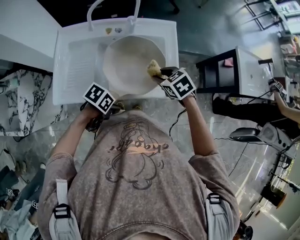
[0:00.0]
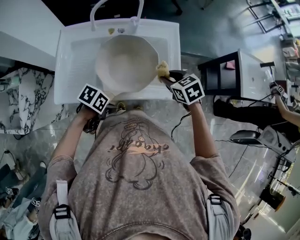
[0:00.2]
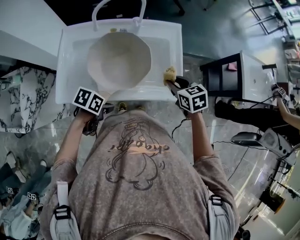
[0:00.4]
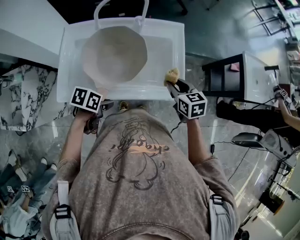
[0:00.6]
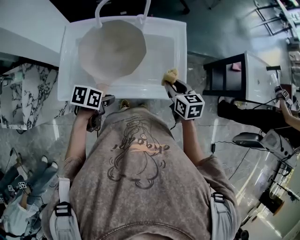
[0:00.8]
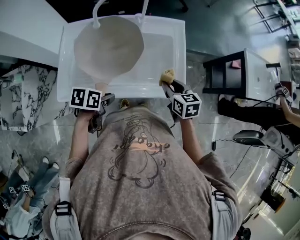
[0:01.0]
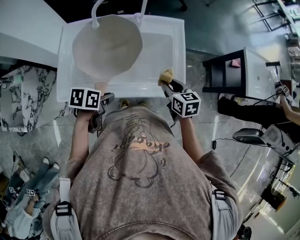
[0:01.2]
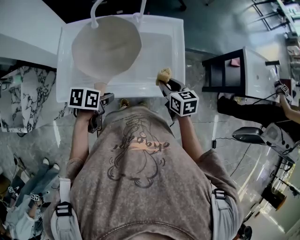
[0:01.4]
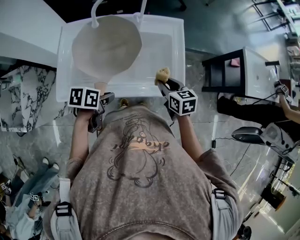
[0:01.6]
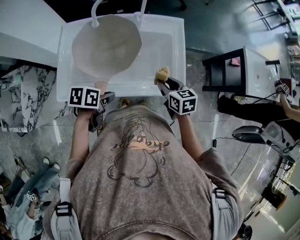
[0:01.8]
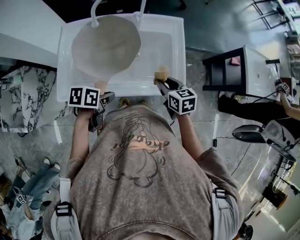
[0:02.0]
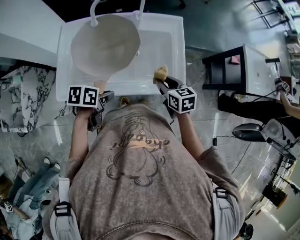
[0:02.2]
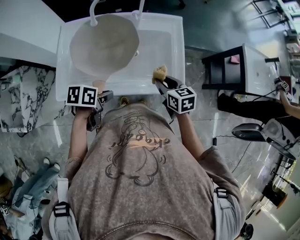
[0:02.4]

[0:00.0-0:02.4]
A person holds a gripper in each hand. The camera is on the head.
0:00.0 to 0:01.2: The right gripper changes its angle by approximately 40 degrees.

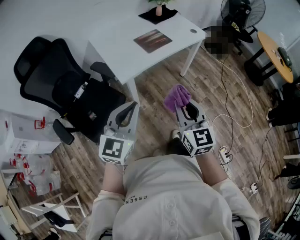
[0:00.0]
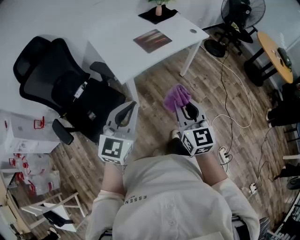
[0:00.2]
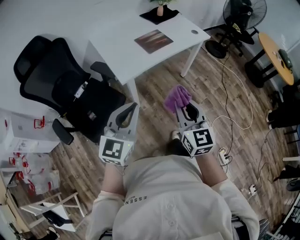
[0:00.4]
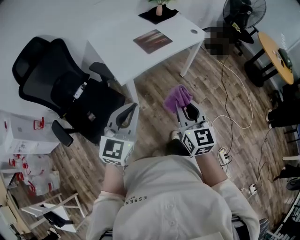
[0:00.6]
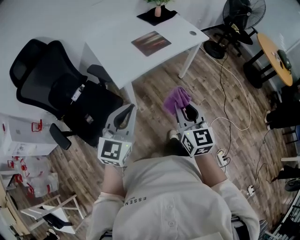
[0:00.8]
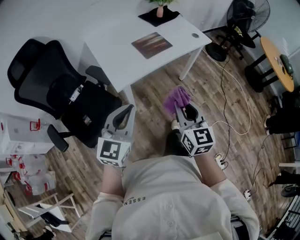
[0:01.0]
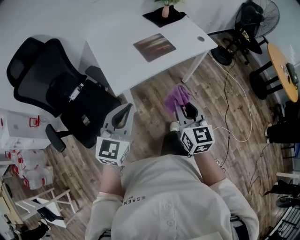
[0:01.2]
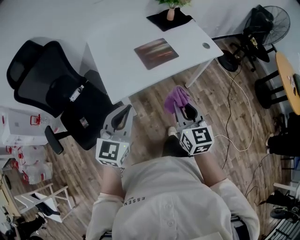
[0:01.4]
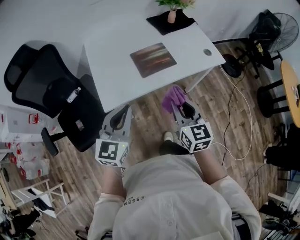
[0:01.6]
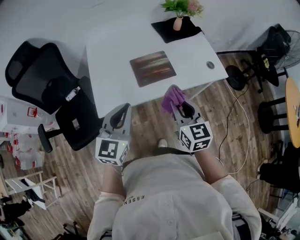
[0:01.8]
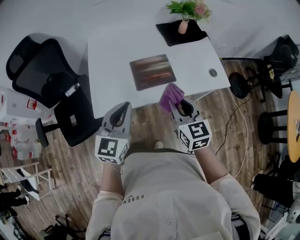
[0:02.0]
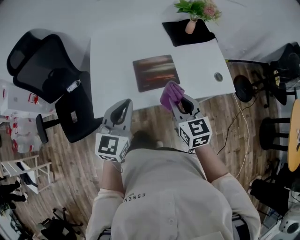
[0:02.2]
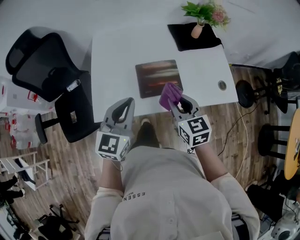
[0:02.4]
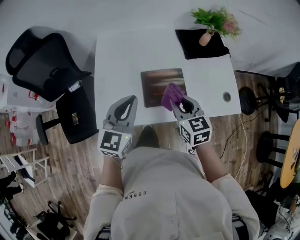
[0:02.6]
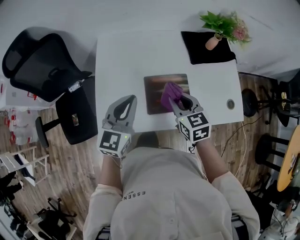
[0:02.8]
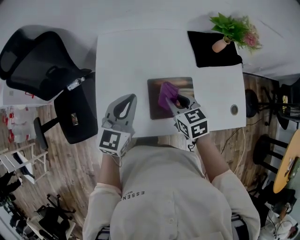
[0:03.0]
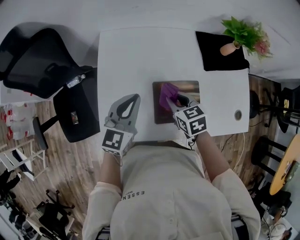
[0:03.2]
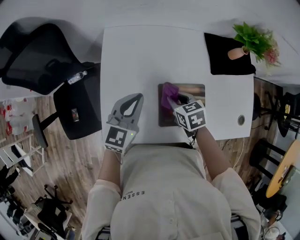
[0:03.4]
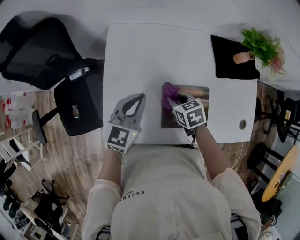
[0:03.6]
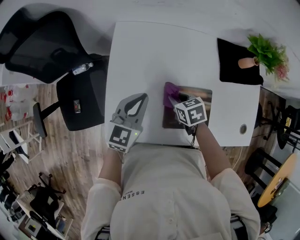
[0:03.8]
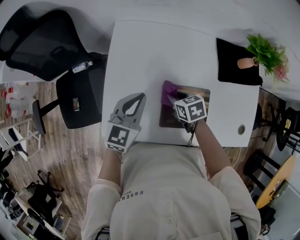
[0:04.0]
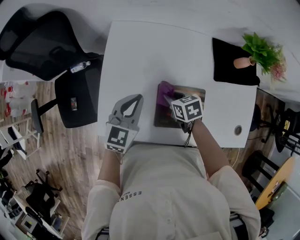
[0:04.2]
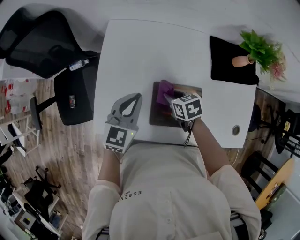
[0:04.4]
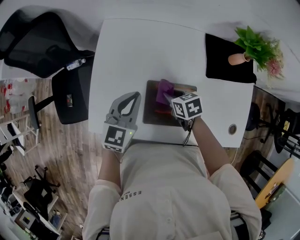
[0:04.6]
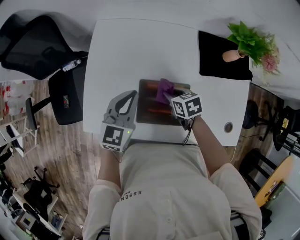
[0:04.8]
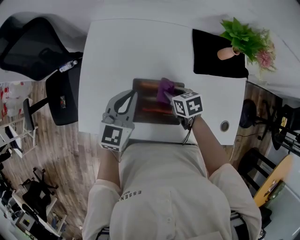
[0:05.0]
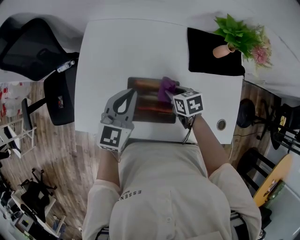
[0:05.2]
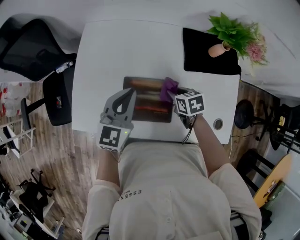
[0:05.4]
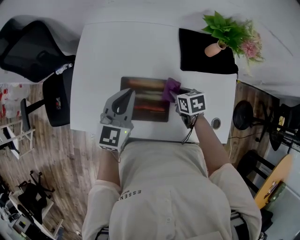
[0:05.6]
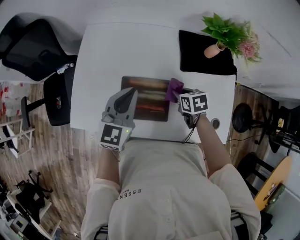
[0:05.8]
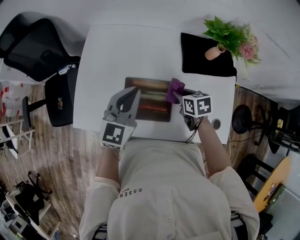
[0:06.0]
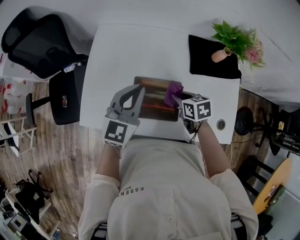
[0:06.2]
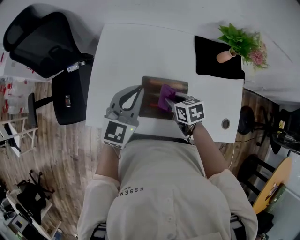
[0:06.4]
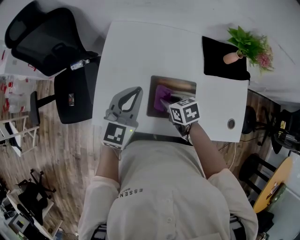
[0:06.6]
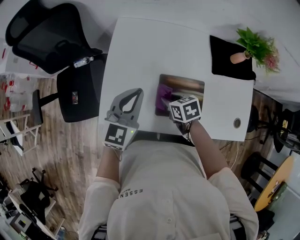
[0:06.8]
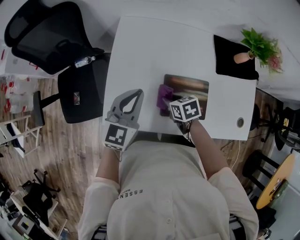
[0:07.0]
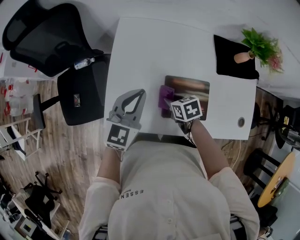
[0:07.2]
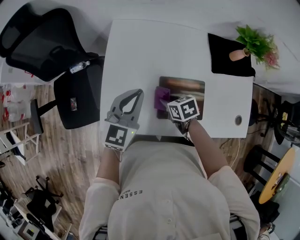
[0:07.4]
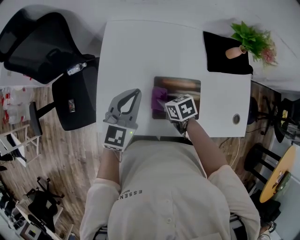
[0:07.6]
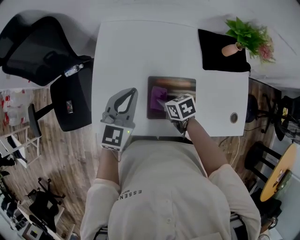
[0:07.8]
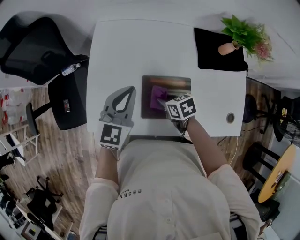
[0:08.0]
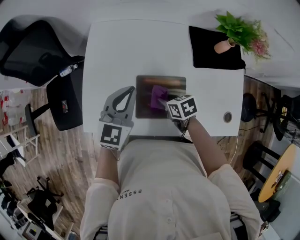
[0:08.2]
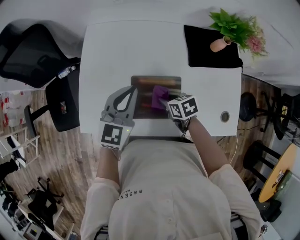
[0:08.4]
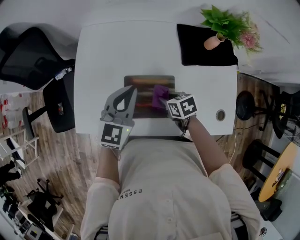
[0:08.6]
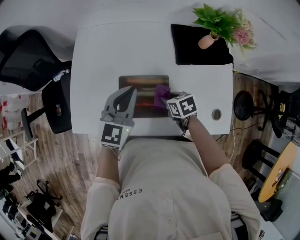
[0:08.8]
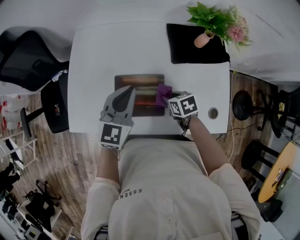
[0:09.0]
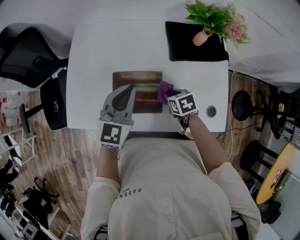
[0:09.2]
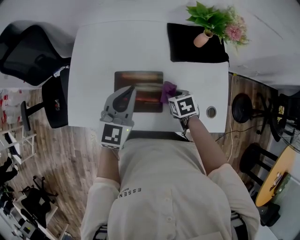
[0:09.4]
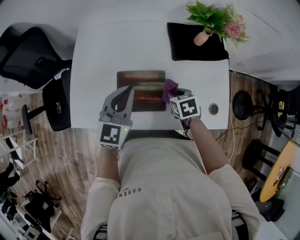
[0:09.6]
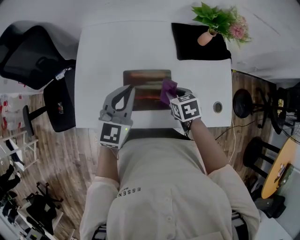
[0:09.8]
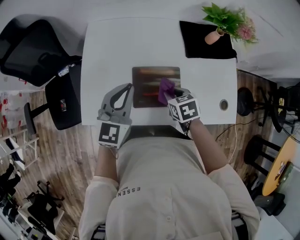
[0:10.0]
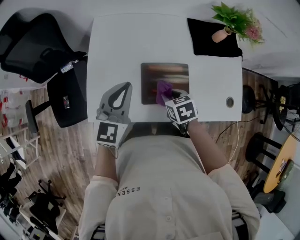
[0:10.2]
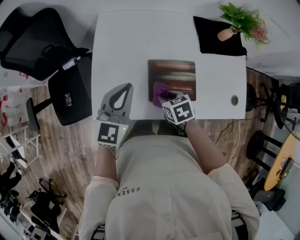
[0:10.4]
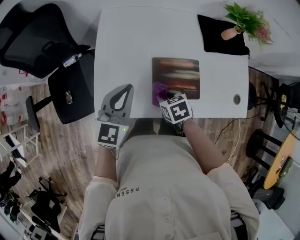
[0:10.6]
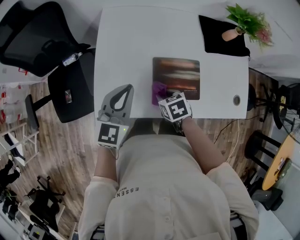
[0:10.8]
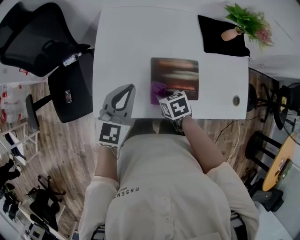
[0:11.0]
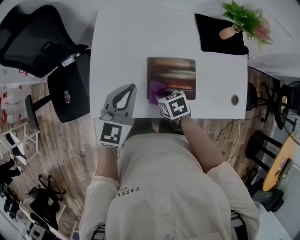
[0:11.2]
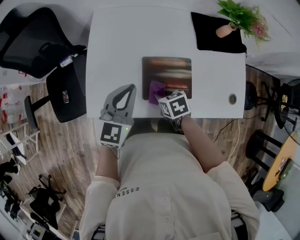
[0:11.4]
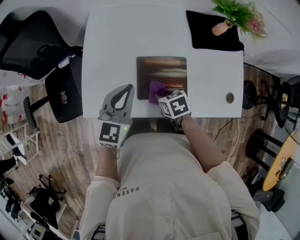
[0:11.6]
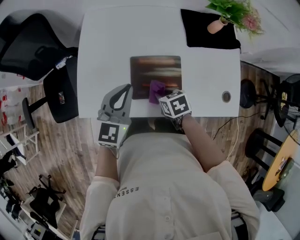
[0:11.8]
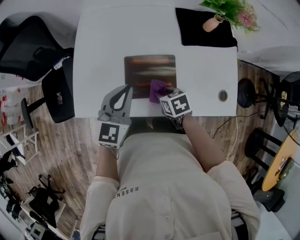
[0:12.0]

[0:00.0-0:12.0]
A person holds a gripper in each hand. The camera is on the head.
0:00.0 to 0:01.6: The grippers both shift forward by approximately 25 cm.
0:01.6 to 0:03.0: The two grippers go some 30 cm forward. The right gripper changes its angle by about 40 degrees.
0:03.0 to 0:04.4: The left gripper goes roughly 5 cm downward. Meanwhile the right gripper moves downward and forward, approximately 15 cm, and rotates roughly 20 degrees.
0:04.4 to 0:06.0: The left gripper goes about 15 cm to the right and upward. The right gripper heads to the right, covering approximately 15 cm.
0:06.0 to 0:07.6: The right gripper heads to the left, covering some 20 cm; the left gripper travels to the left by some 15 cm.
0:07.6 to 0:09.0: Both grippers travel together to the right, approximately 20 cm.
0:09.0 to 0:10.4: The grippers both shift to the left by about 20 cm.
0:10.4 to 0:12.0: The two grippers go about 10 cm to the right.

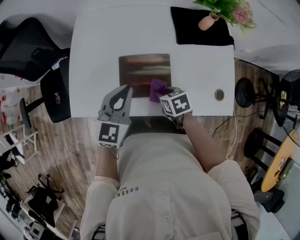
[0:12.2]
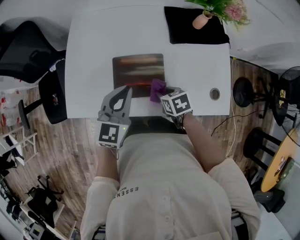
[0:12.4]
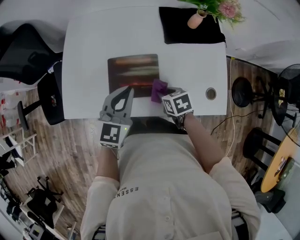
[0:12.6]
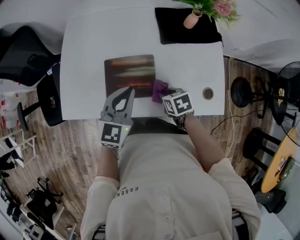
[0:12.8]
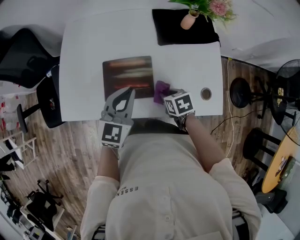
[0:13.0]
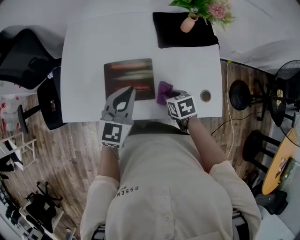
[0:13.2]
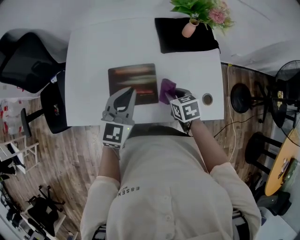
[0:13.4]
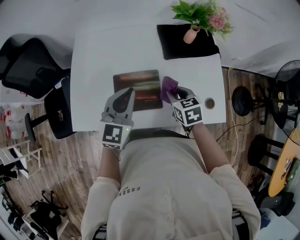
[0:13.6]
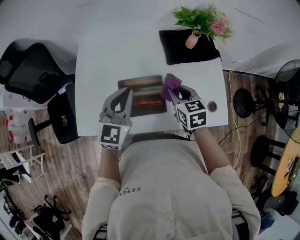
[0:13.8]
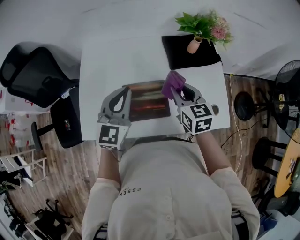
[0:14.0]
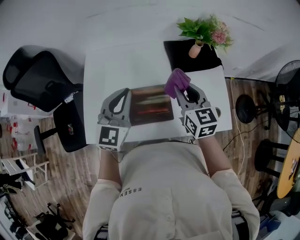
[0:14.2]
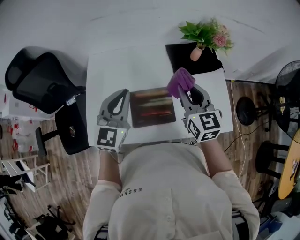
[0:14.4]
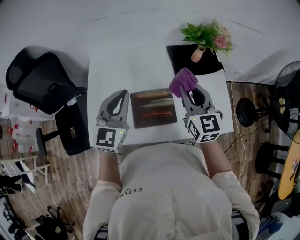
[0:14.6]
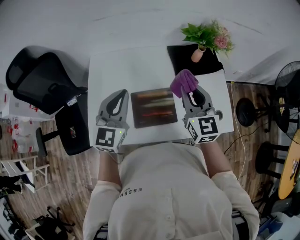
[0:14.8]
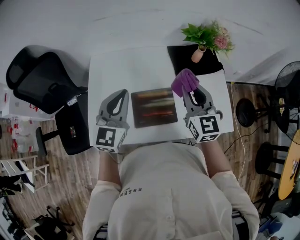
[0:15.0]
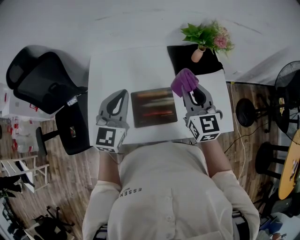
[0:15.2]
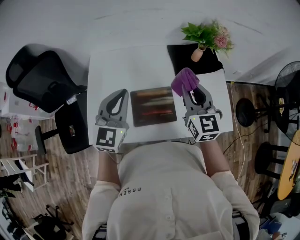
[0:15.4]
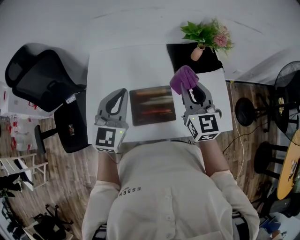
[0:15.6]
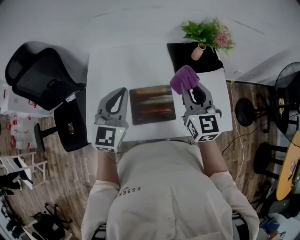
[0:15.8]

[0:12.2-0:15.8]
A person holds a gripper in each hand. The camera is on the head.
0:12.2 to 0:14.0: The left gripper travels upward and forward by about 10 cm, while the right gripper is displaced upward and forward by roughly 20 cm, and points its fingers about 30 degrees further upward.
0:14.0 to 0:15.8: The left gripper shifts by about 5 cm. Meanwhile the right gripper goes some 10 cm upward, and changes its angle by about 20 degrees.

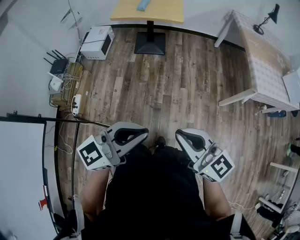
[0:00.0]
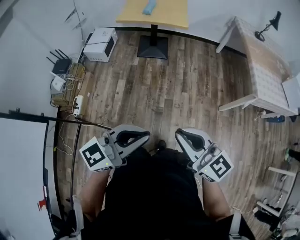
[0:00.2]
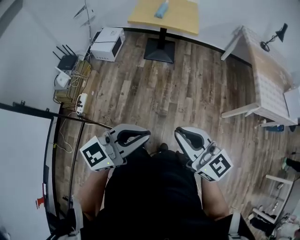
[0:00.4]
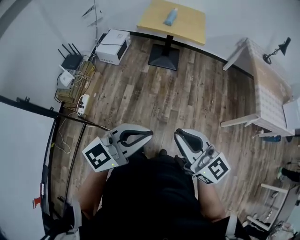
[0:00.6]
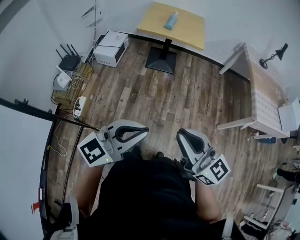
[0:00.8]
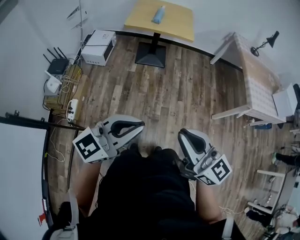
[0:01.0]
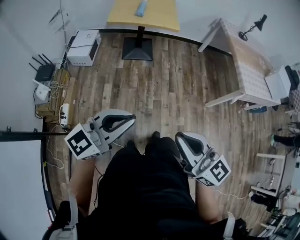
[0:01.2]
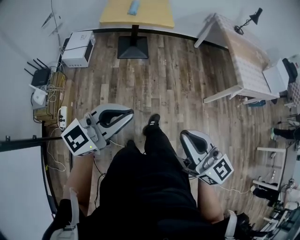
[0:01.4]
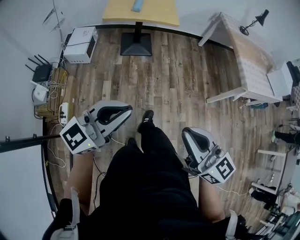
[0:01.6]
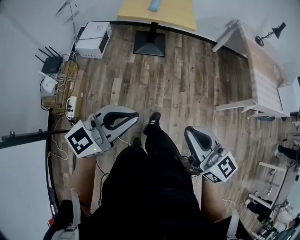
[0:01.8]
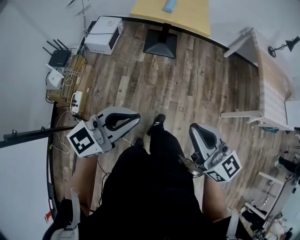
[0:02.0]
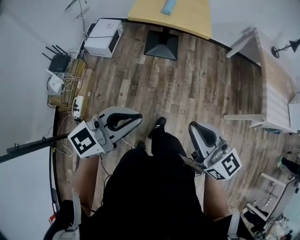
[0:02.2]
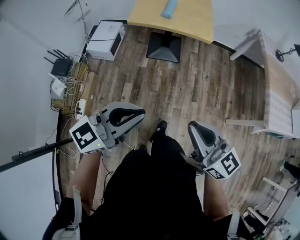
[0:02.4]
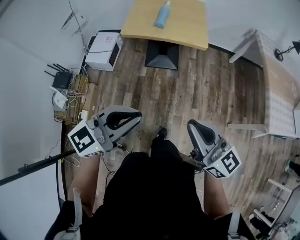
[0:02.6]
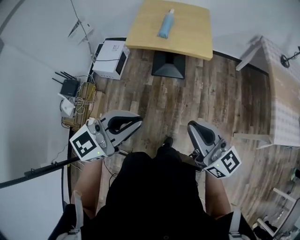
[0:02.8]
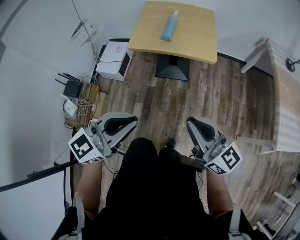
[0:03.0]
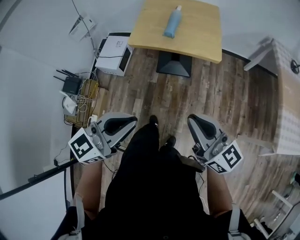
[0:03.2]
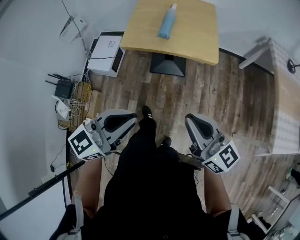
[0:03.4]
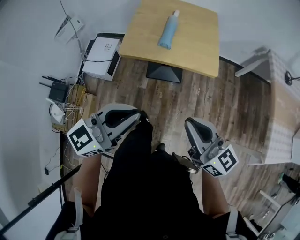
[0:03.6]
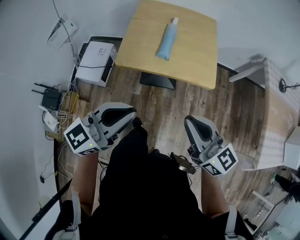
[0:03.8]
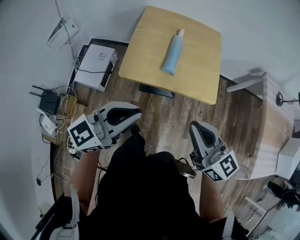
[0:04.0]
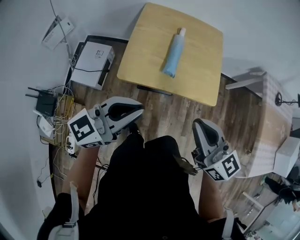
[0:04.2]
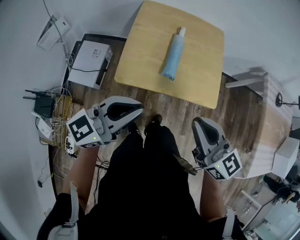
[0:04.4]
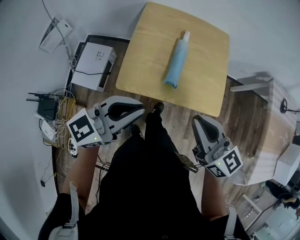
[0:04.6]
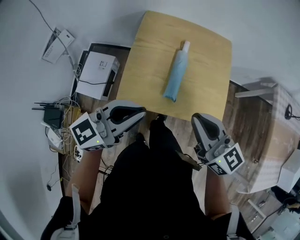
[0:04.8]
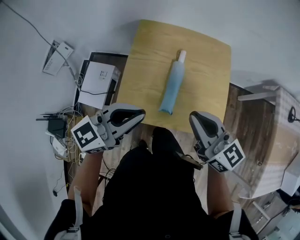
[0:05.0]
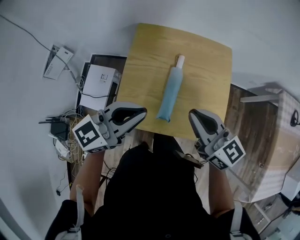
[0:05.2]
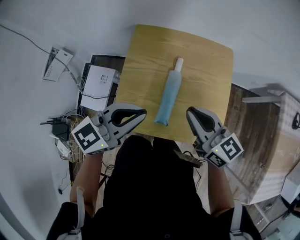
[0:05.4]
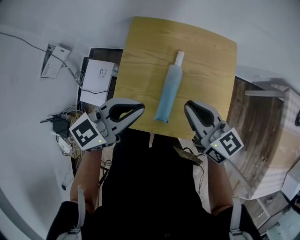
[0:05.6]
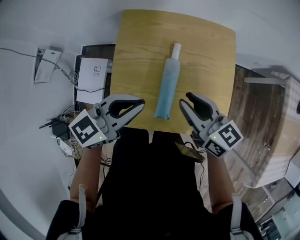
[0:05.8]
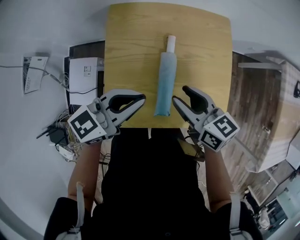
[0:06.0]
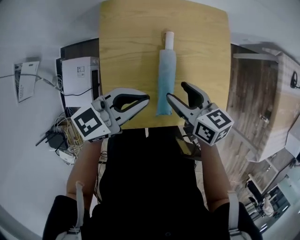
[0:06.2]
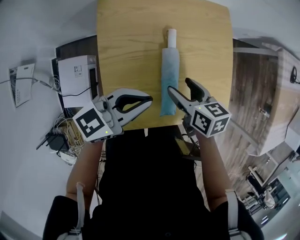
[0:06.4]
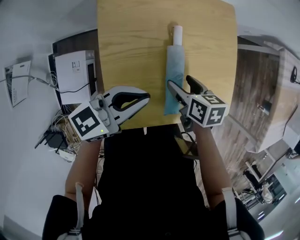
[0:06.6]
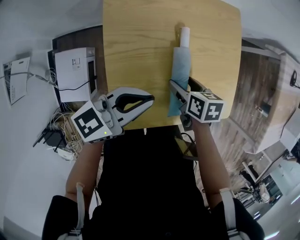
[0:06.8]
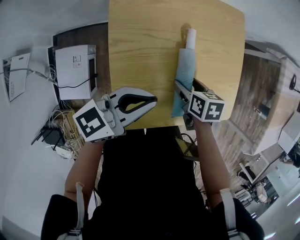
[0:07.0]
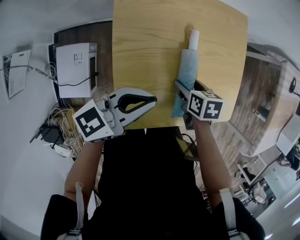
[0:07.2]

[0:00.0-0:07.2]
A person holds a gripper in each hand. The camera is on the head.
0:00.0 to 0:01.4: The left gripper goes some 15 cm to the left. Meanwhile the right gripper heads to the left, covering some 10 cm.
0:01.4 to 0:02.8: Both grippers move forward, roughly 30 cm.
0:02.8 to 0:04.4: Both grippers are carried forward, roughly 40 cm.
0:04.4 to 0:05.8: Both grippers move forward, some 30 cm.
0:05.8 to 0:07.2: The left gripper goes some 10 cm downward and to the left, and turns by some 20 degrees, while the right gripper travels downward by roughly 20 cm, tilts its fingers roughly 50 degrees downward, and opens.
